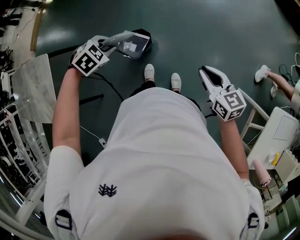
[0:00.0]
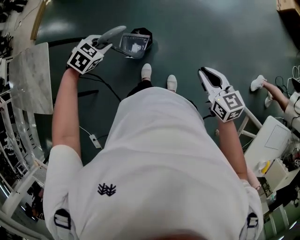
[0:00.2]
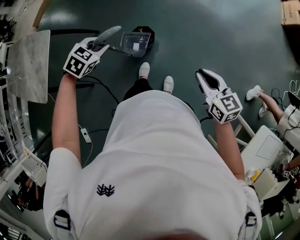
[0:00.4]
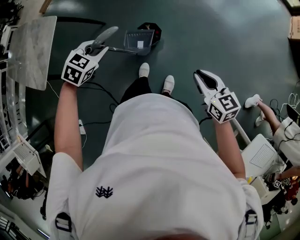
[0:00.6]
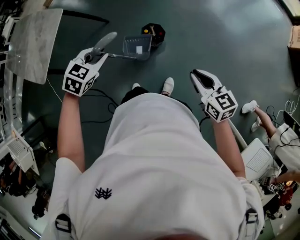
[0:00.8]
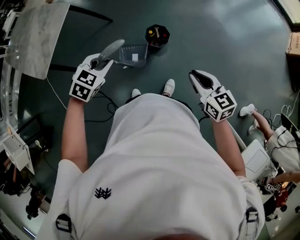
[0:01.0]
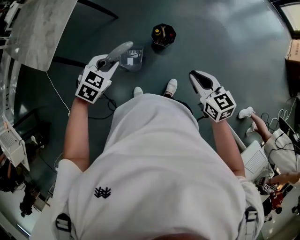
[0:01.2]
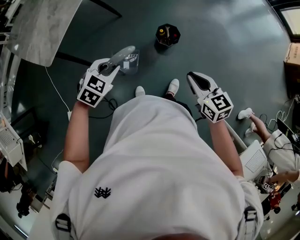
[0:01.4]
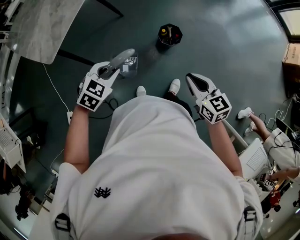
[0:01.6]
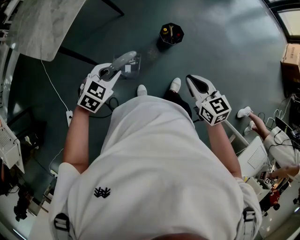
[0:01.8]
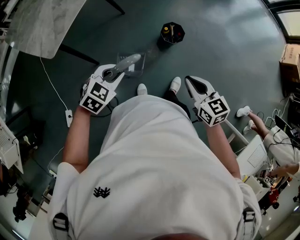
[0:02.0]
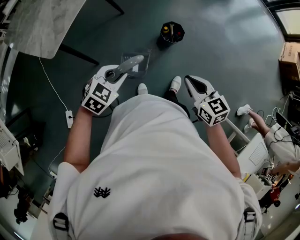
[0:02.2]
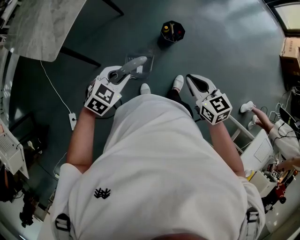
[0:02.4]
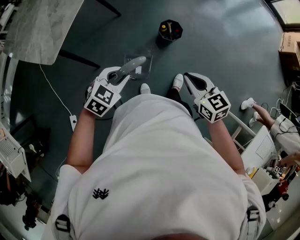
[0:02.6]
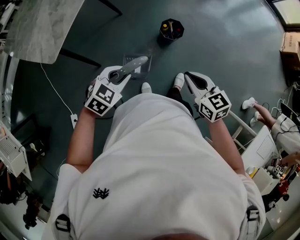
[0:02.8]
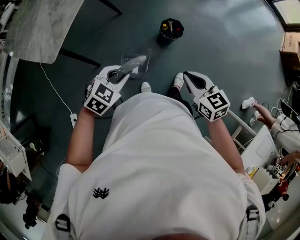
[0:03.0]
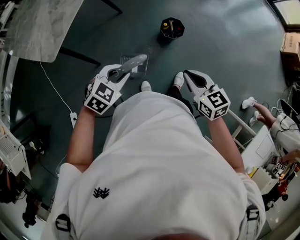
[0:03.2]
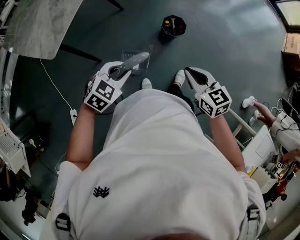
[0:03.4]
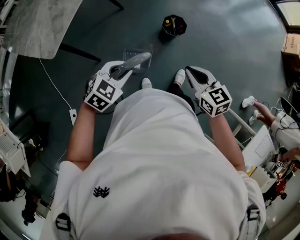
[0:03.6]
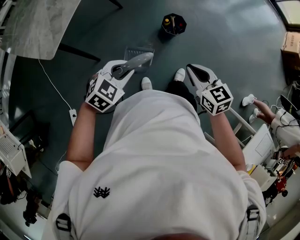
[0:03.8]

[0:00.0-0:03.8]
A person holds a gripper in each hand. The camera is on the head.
0:00.0 to 0:01.2: The right gripper ends up roughly 20 cm from where it was, and swivels about 30 degrees; the left gripper changes place by approximately 30 cm, and rotates approximately 40 degrees.
0:01.2 to 0:02.6: The left gripper heads backward and to the left, covering approximately 15 cm. The right gripper travels to the left and backward by approximately 20 cm.
0:02.6 to 0:03.8: The grippers make only small movements.

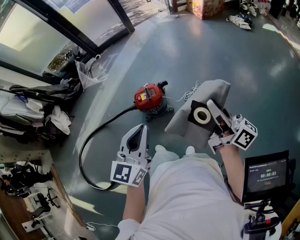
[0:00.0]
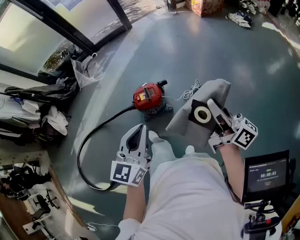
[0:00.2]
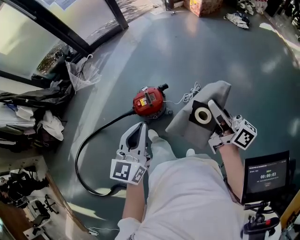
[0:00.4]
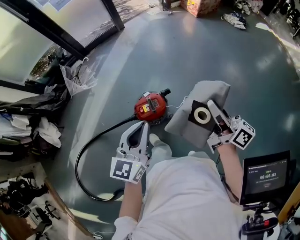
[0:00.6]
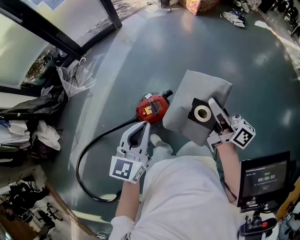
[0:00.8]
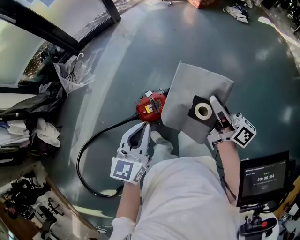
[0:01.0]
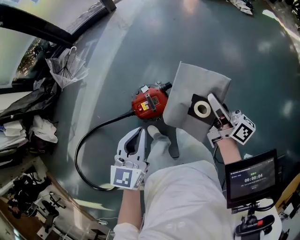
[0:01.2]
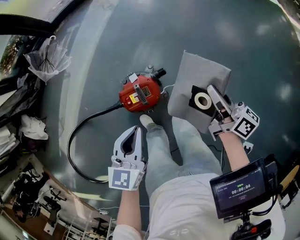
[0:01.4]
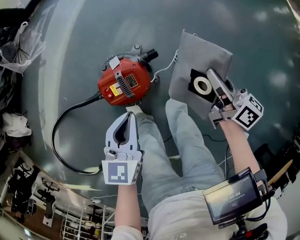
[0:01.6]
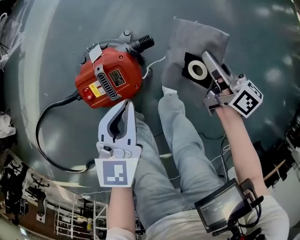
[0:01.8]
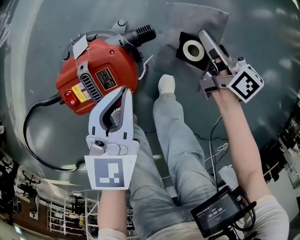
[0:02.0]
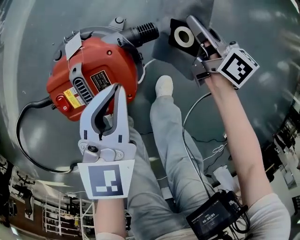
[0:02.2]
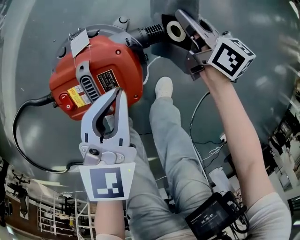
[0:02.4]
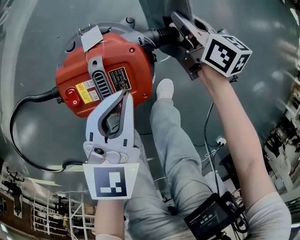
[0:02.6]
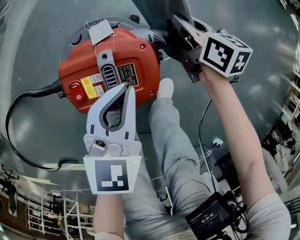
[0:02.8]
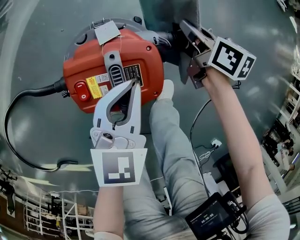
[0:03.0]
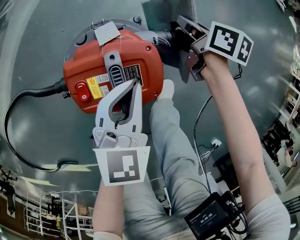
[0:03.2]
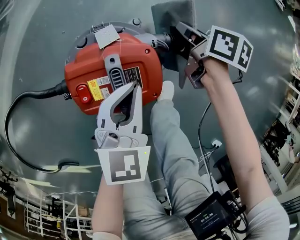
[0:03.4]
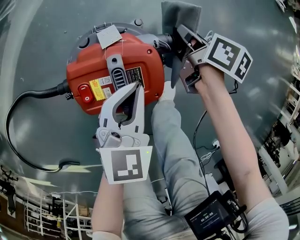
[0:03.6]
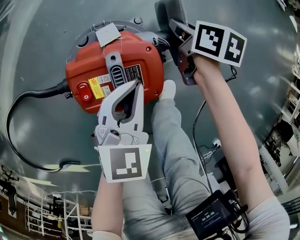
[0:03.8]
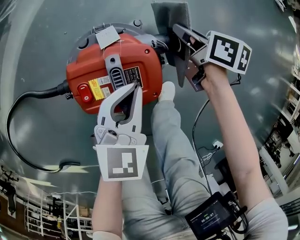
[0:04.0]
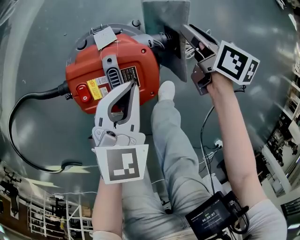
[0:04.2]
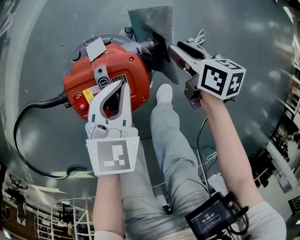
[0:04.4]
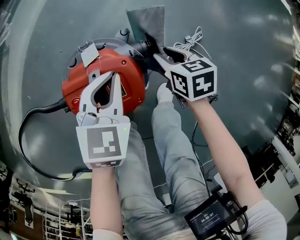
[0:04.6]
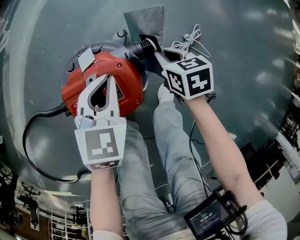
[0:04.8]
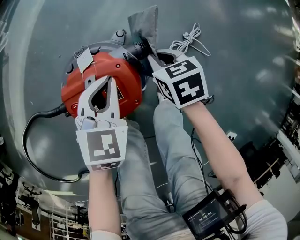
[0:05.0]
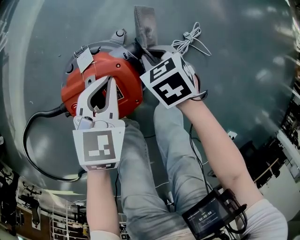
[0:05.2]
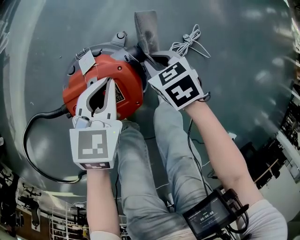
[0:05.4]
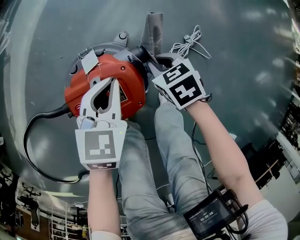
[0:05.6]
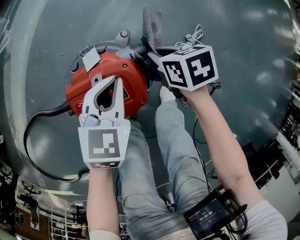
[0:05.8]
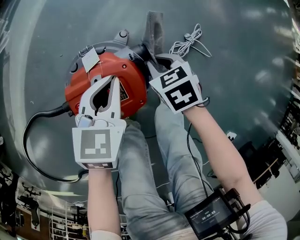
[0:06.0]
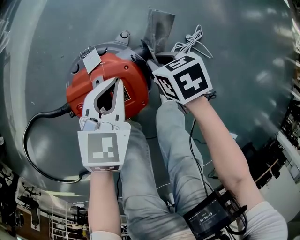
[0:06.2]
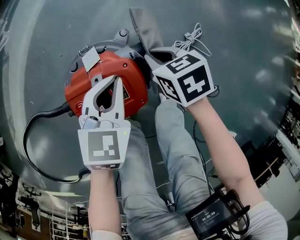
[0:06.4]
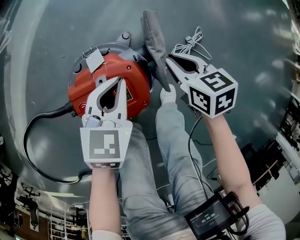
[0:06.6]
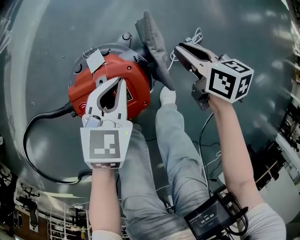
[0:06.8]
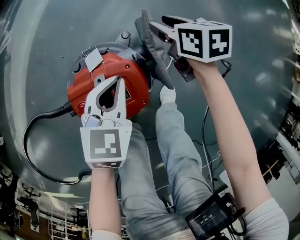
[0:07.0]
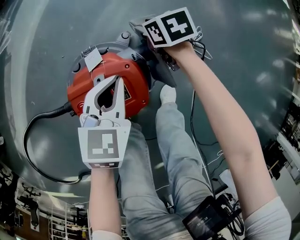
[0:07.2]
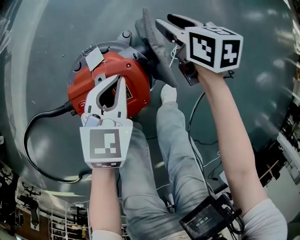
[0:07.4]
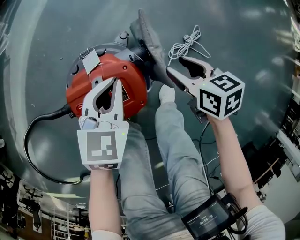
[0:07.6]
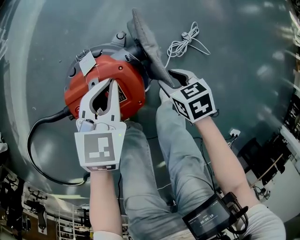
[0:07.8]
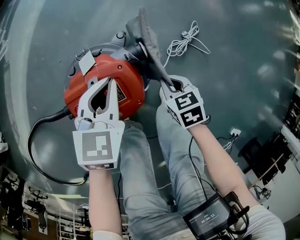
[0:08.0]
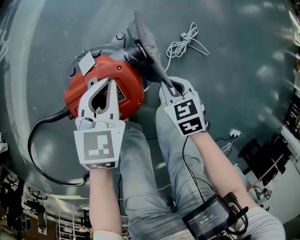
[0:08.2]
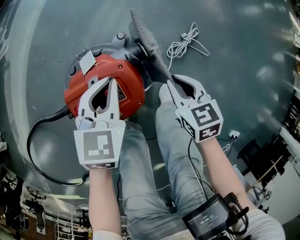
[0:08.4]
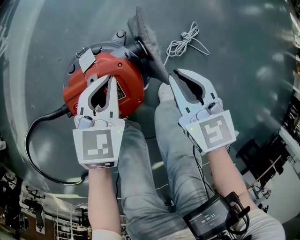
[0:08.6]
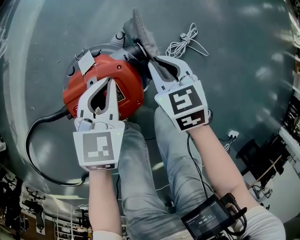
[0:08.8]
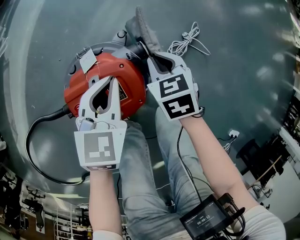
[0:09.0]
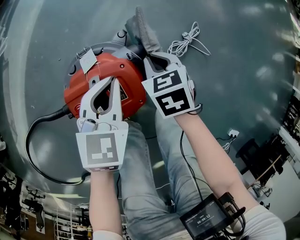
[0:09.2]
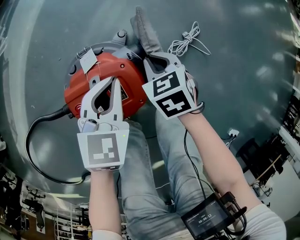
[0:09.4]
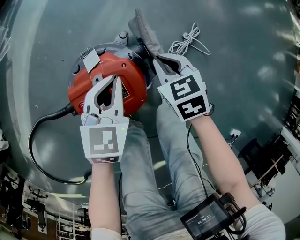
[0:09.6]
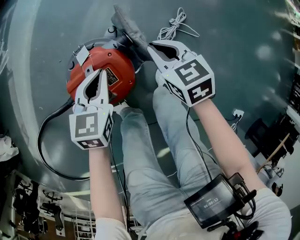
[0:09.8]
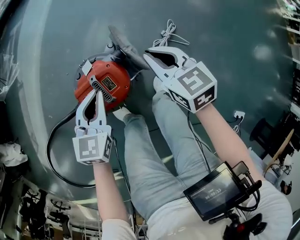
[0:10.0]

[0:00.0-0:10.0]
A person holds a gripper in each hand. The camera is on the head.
0:00.0 to 0:01.4: The left gripper shifts some 40 cm forward, downward and to the left, and changes its angle by approximately 20 degrees. Meanwhile the right gripper shifts about 40 cm forward and downward, and rotates roughly 30 degrees.
0:01.4 to 0:02.8: Both grippers travel together downward, roughly 40 cm. The right gripper angles its fingers downward, by about 30 degrees.
0:04.2 to 0:05.8: The right gripper shifts about 5 cm backward, and rotates about 30 degrees.
0:05.8 to 0:07.2: The right gripper goes some 10 cm forward, and opens up.
0:07.2 to 0:08.6: The right gripper is displaced backward and upward by some 20 cm, turns by some 30 degrees, and closes its fingers.
0:08.6 to 0:10.0: Both grippers travel together upward, roughly 10 cm.

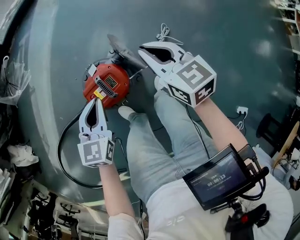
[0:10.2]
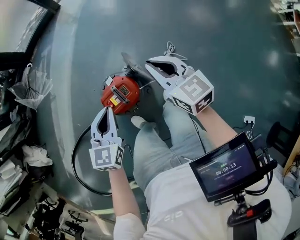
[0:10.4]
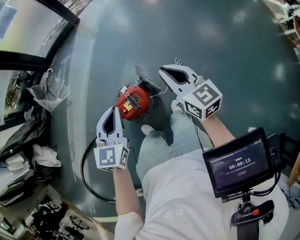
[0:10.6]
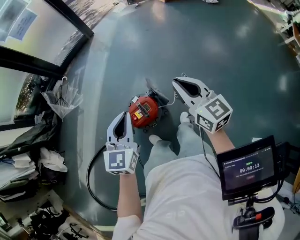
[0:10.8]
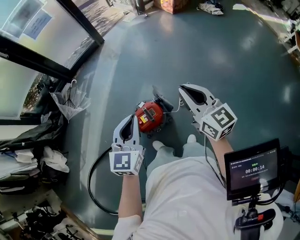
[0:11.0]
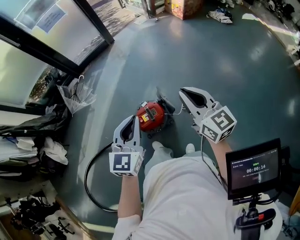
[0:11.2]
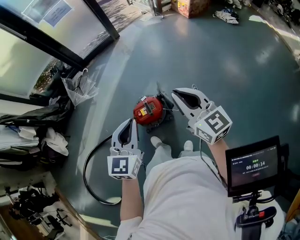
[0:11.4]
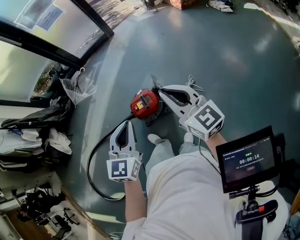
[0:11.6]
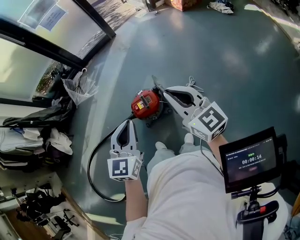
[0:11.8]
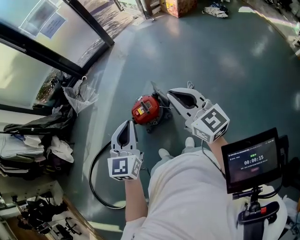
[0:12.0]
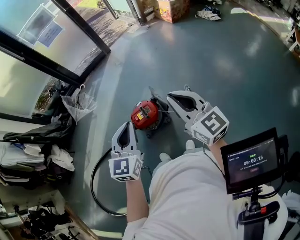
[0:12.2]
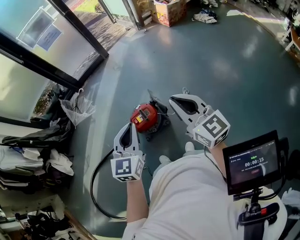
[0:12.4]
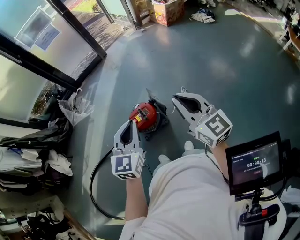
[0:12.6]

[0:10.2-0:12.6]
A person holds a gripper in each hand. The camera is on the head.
0:10.2 to 0:11.4: The left gripper moves upward, approximately 50 cm, and turns by about 20 degrees. The right gripper is displaced upward and backward by some 50 cm, and swivels some 30 degrees.
0:11.4 to 0:12.6: The left gripper moves backward, roughly 5 cm, while the right gripper shifts some 10 cm backward.

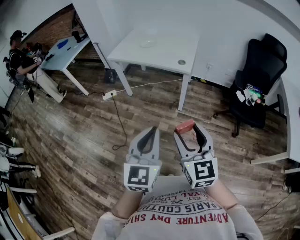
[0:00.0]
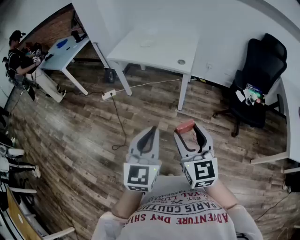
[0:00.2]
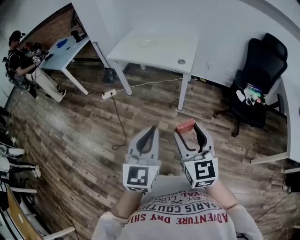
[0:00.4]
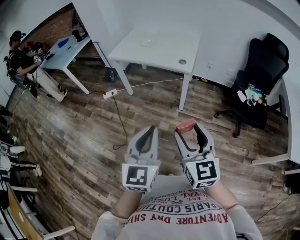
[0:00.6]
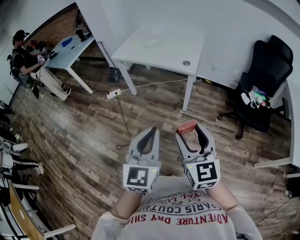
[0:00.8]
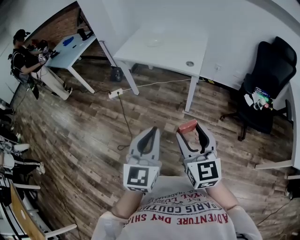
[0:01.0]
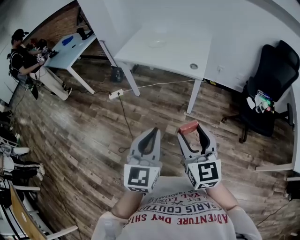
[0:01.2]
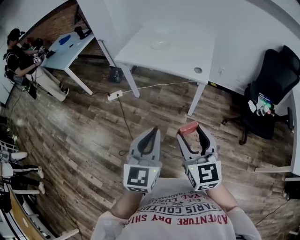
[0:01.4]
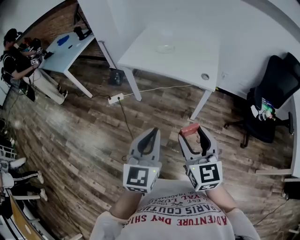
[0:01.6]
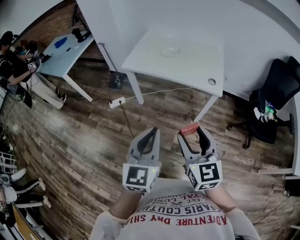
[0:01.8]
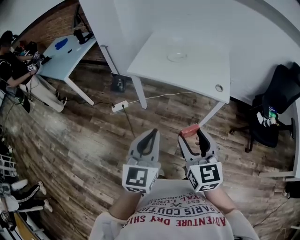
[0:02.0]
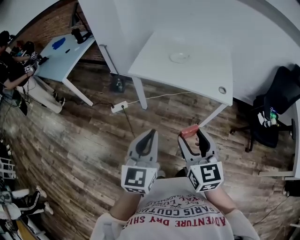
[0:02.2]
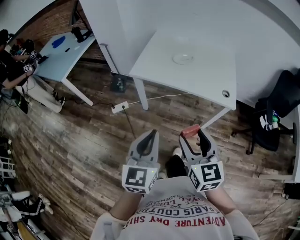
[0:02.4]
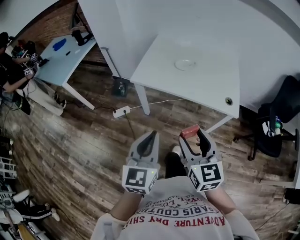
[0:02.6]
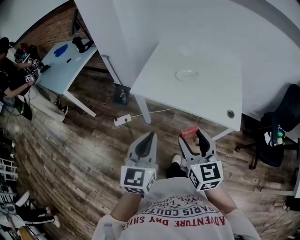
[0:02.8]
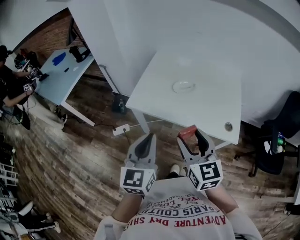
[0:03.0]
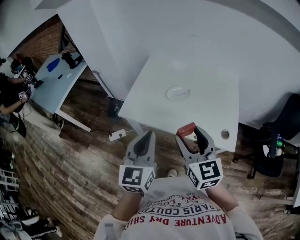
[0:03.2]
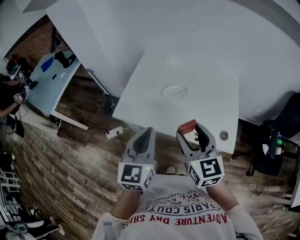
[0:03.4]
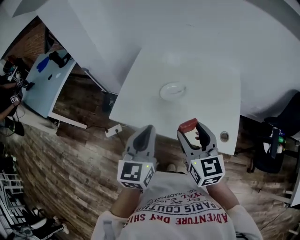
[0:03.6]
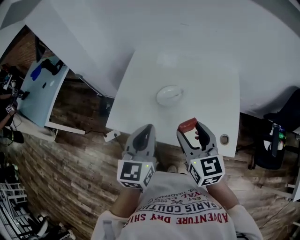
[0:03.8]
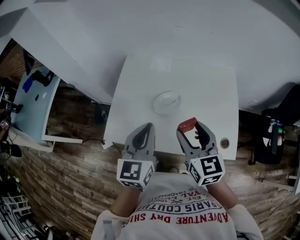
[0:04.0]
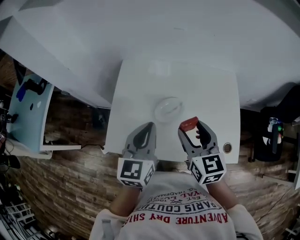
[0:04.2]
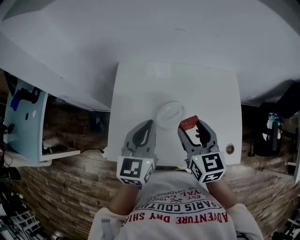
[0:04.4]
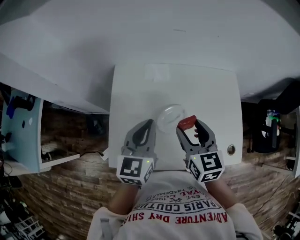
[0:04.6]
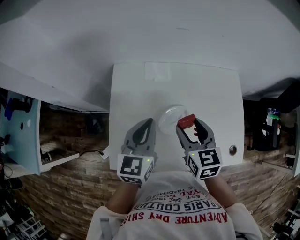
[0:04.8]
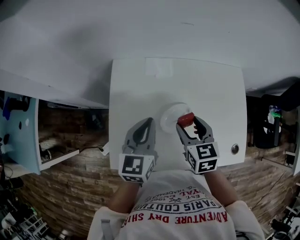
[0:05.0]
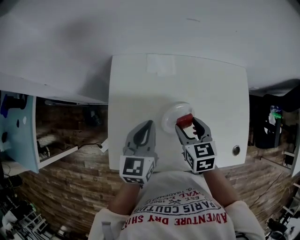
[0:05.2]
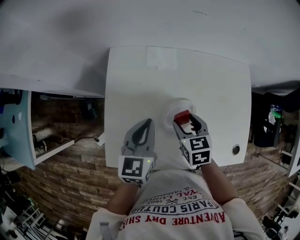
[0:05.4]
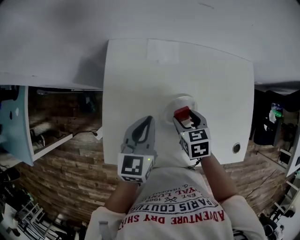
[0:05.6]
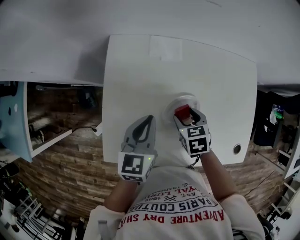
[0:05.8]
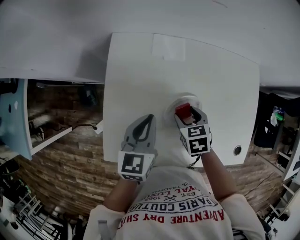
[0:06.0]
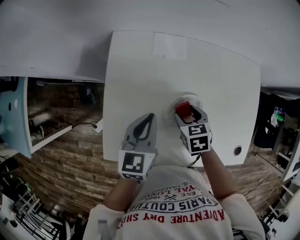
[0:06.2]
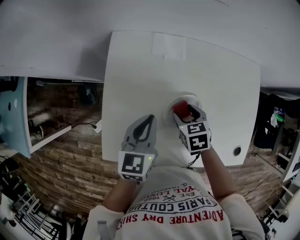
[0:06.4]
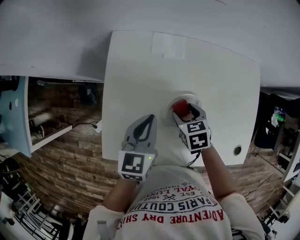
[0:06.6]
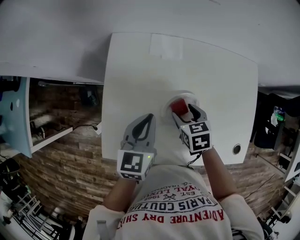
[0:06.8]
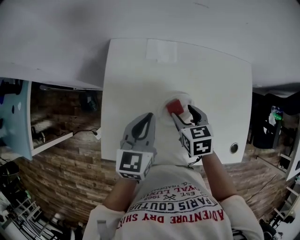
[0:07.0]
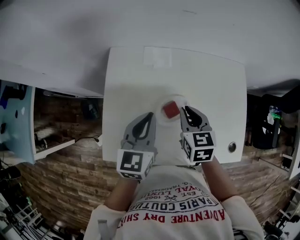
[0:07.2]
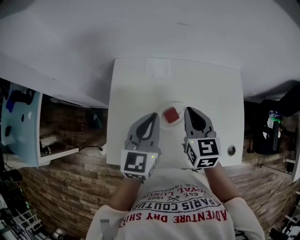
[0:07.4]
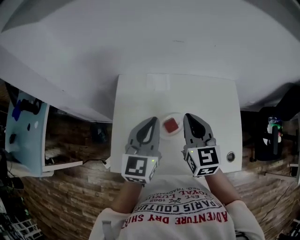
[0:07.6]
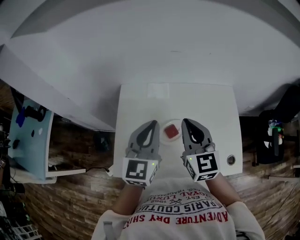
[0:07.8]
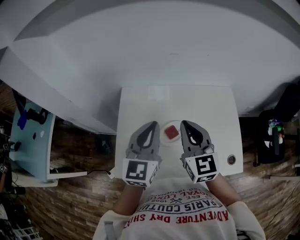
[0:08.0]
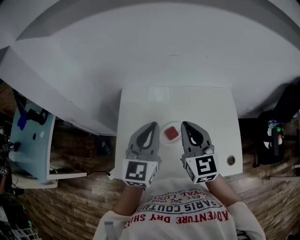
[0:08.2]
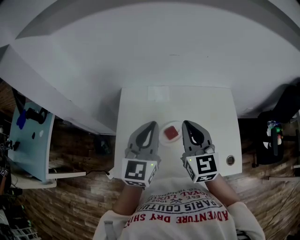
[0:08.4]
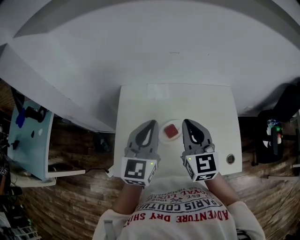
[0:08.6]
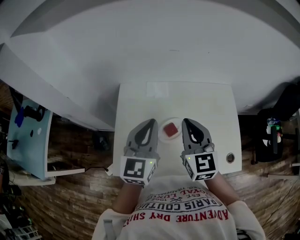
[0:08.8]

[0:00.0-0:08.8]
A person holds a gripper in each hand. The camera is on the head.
0:00.0 to 0:01.4: The two grippers go roughly 15 cm forward and to the left.
0:01.4 to 0:03.0: The pair of grippers is taken forward and to the left, approximately 50 cm.
0:03.0 to 0:04.4: The two grippers go approximately 40 cm forward. The left gripper swivels some 20 degrees, while the right gripper swivels roughly 20 degrees.
0:04.4 to 0:05.8: The right gripper travels downward by about 20 cm, and tips its fingers downward by roughly 40 degrees, while the left gripper is displaced downward and forward by approximately 15 cm.
0:05.8 to 0:07.4: The left gripper travels upward by about 10 cm. Meanwhile the right gripper heads upward, covering about 20 cm, tips its fingers upward by about 40 degrees, and closes.
0:07.4 to 0:08.8: Both grippers travel together upward, roughly 10 cm.
